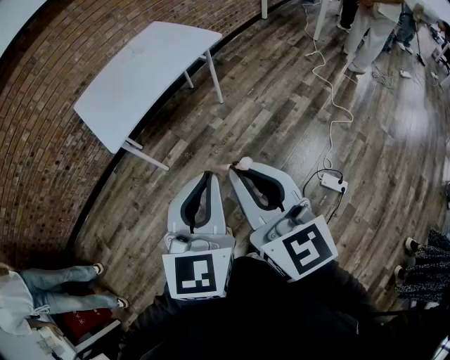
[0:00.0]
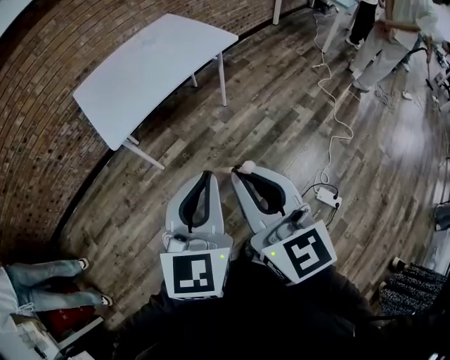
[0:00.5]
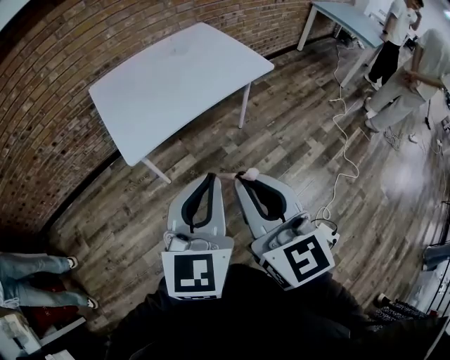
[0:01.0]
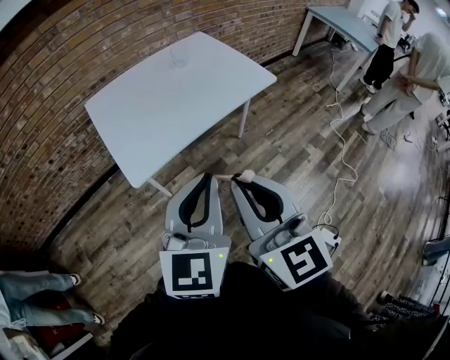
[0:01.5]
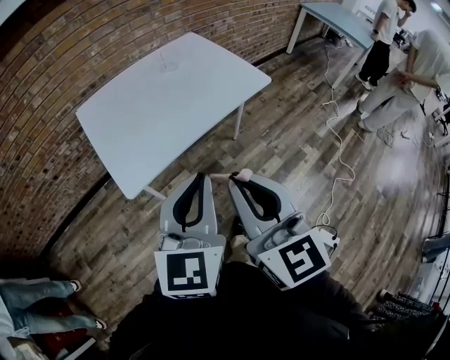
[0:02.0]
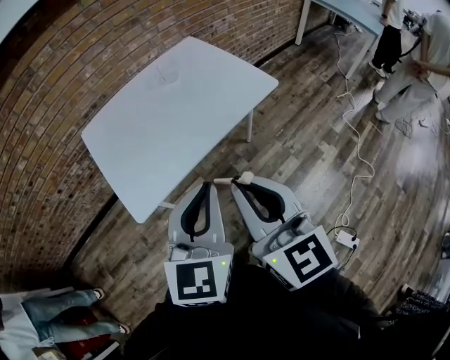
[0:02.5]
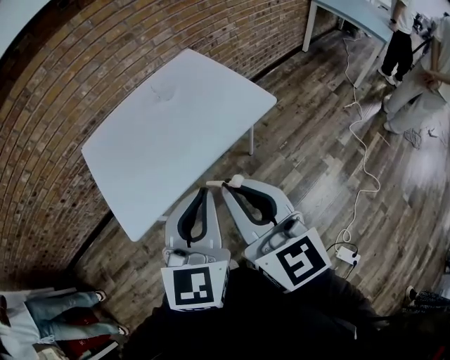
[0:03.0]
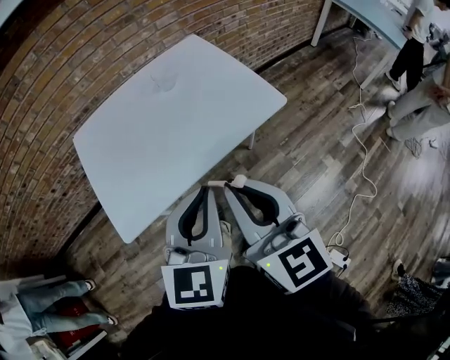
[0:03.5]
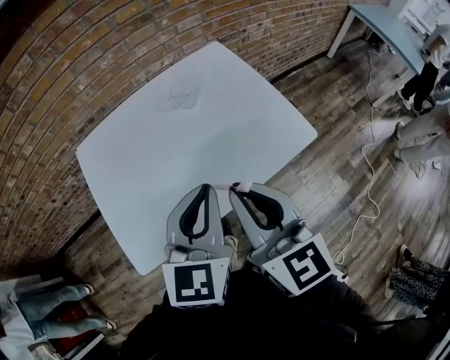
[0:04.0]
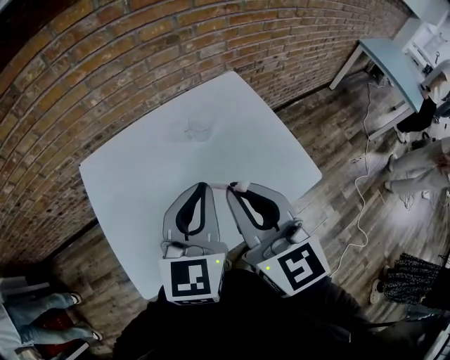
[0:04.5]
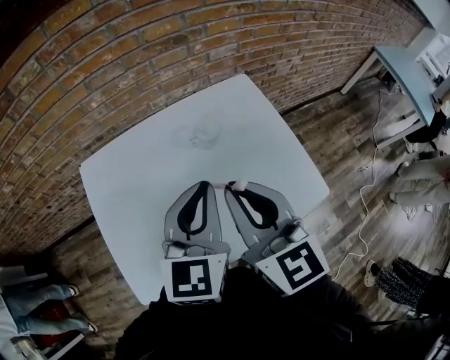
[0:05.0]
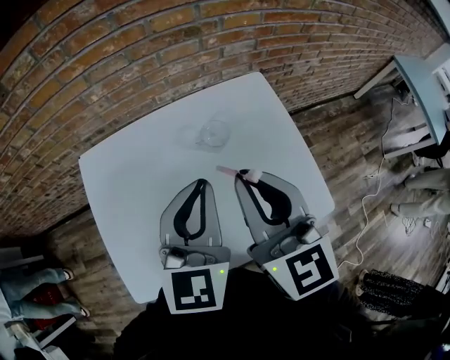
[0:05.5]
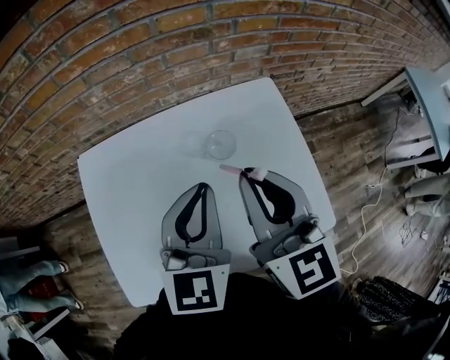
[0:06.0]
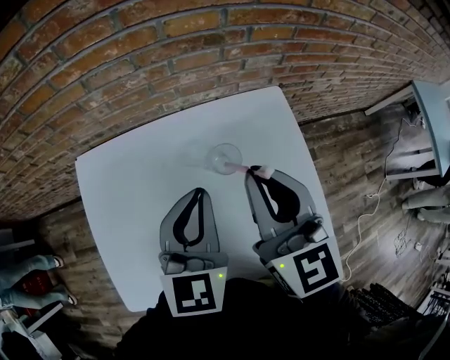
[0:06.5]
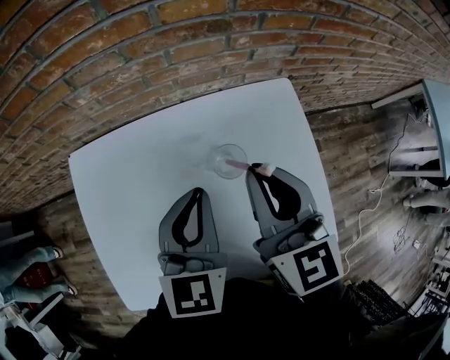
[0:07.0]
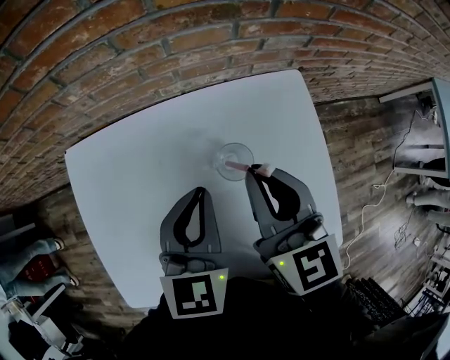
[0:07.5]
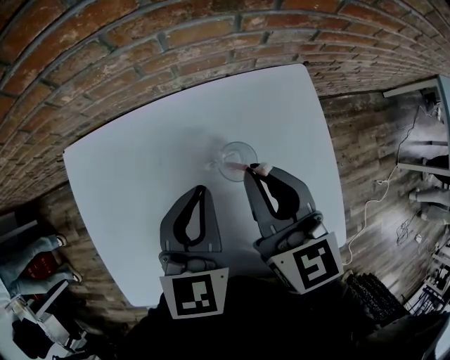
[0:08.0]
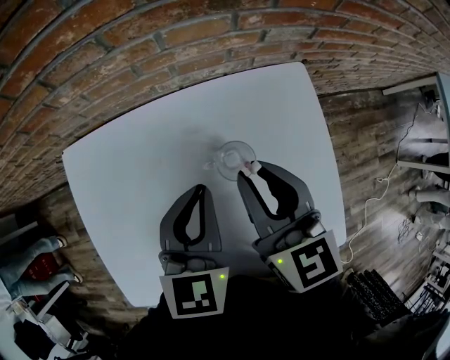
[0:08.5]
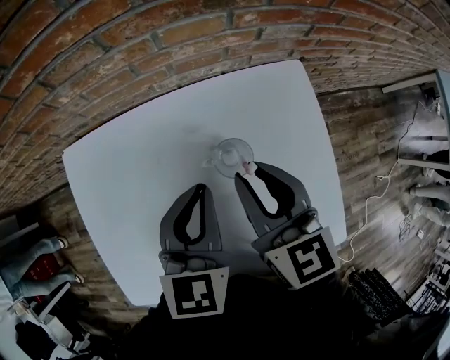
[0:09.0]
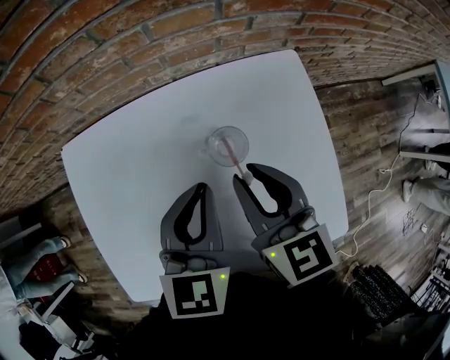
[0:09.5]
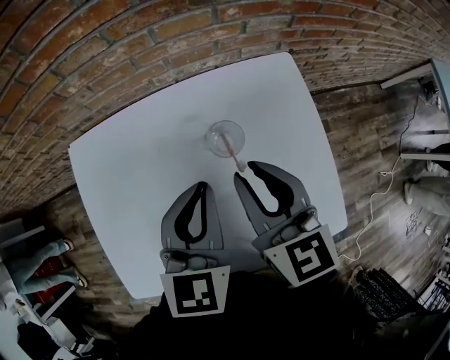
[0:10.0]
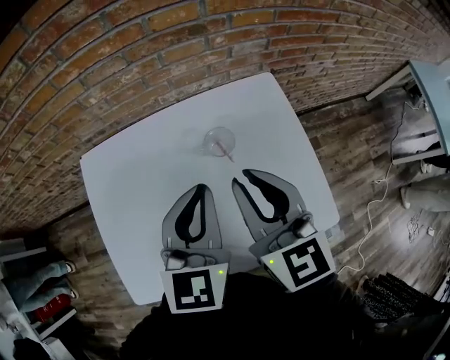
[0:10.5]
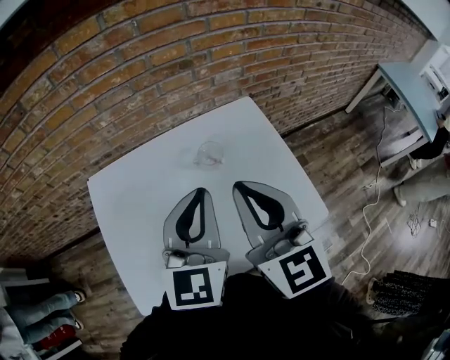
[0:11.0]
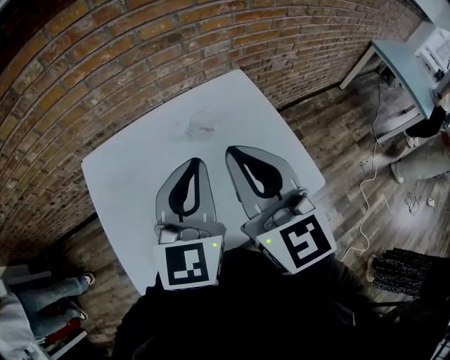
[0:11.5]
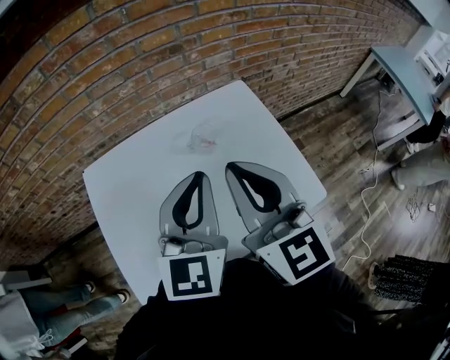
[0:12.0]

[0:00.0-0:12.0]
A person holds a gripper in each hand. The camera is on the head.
0:00.0 to 0:02.0: The grippers both shift forward and to the left by roughly 30 cm.
0:02.0 to 0:04.0: Both grippers move forward, about 30 cm.
0:04.0 to 0:06.0: The grippers both shift forward by roughly 25 cm.
0:06.0 to 0:08.0: Both grippers move downward and forward, roughly 15 cm.
0:08.0 to 0:10.0: The right gripper is displaced backward by roughly 5 cm; the left gripper ends up roughly 5 cm from where it was.
0:10.0 to 0:12.0: Both grippers travel together upward and backward, about 20 cm. The right gripper turns by about 20 degrees, and closes its fingers, while the left gripper rotates some 20 degrees.

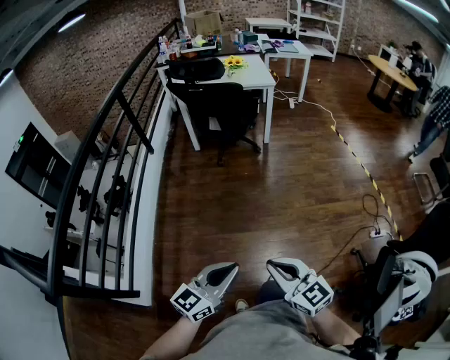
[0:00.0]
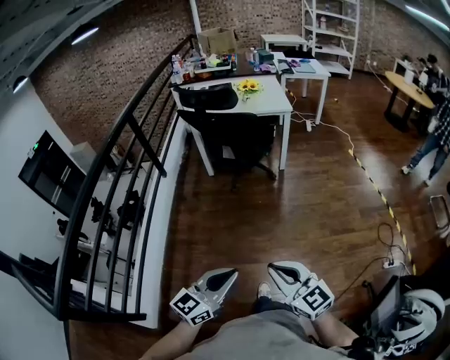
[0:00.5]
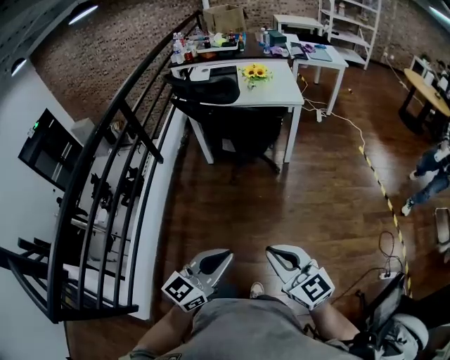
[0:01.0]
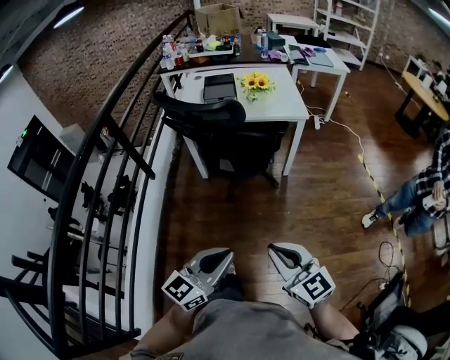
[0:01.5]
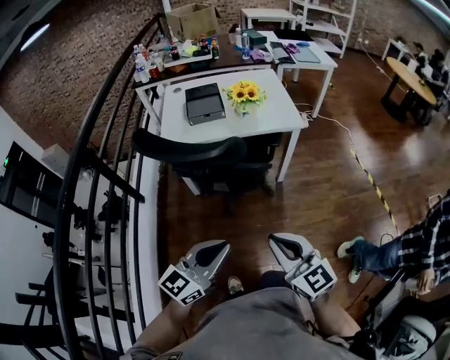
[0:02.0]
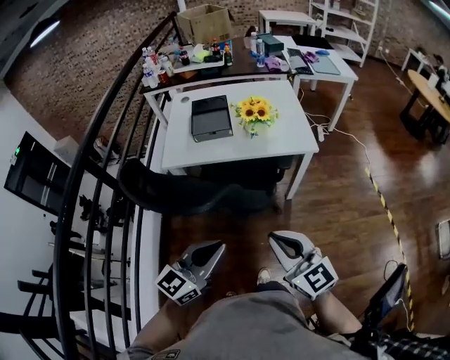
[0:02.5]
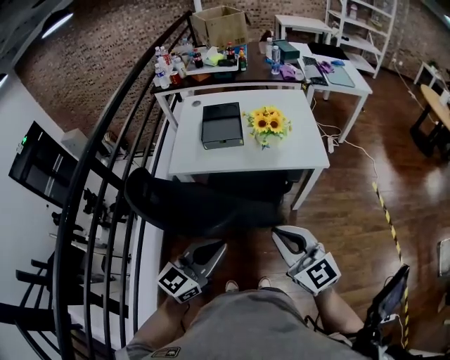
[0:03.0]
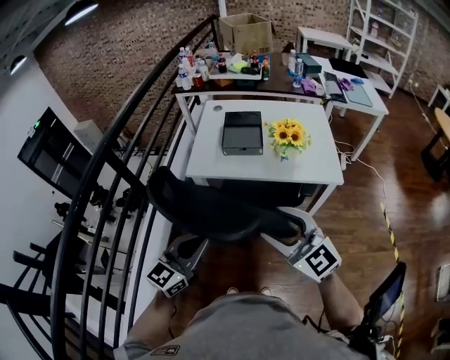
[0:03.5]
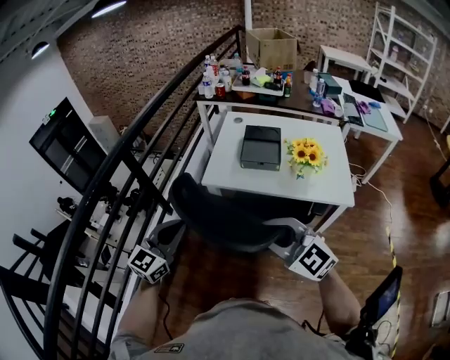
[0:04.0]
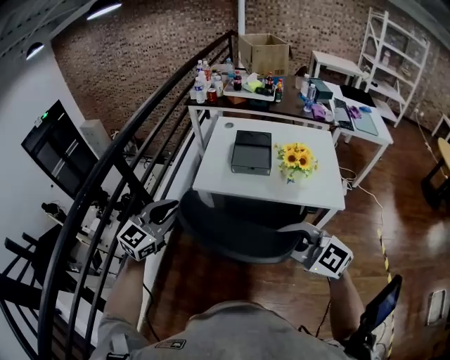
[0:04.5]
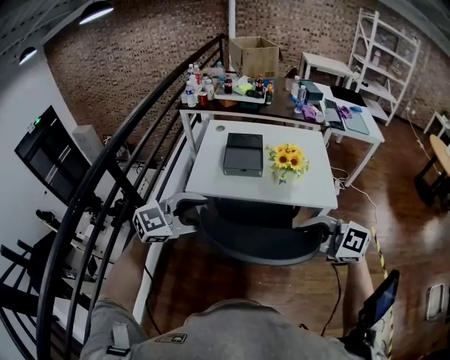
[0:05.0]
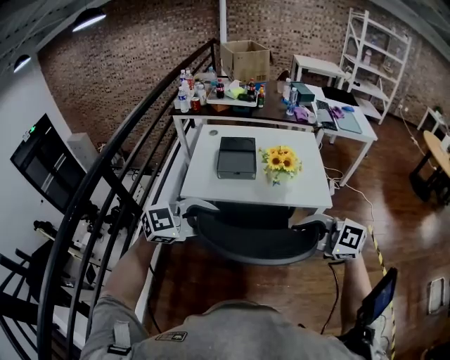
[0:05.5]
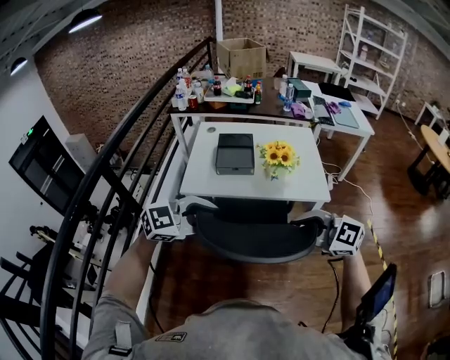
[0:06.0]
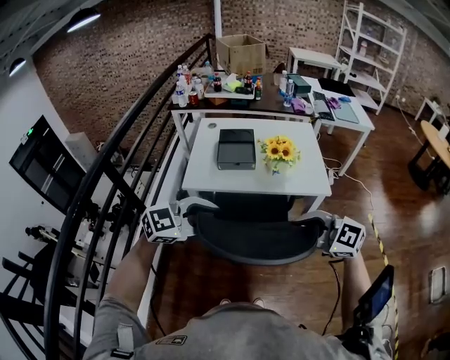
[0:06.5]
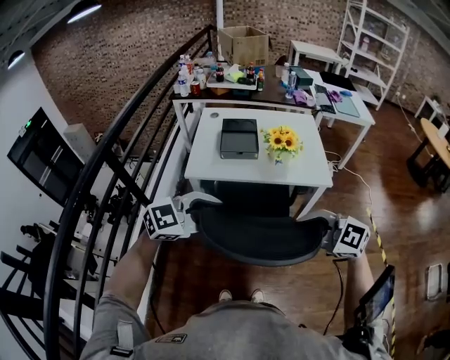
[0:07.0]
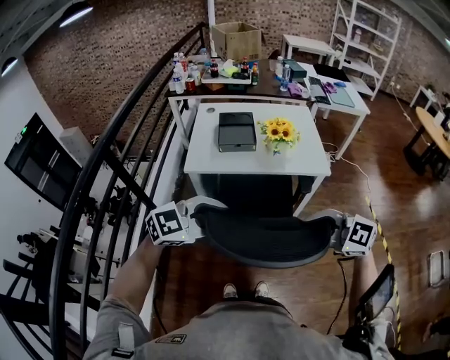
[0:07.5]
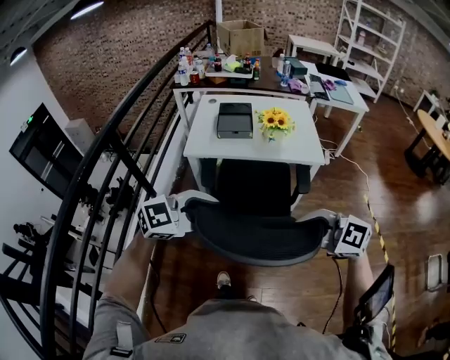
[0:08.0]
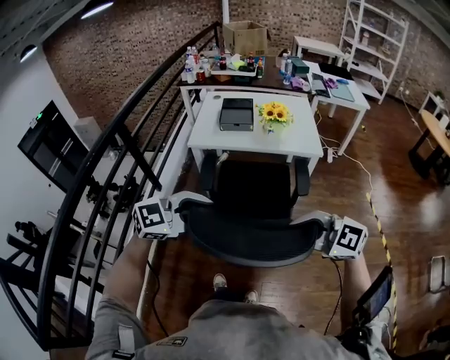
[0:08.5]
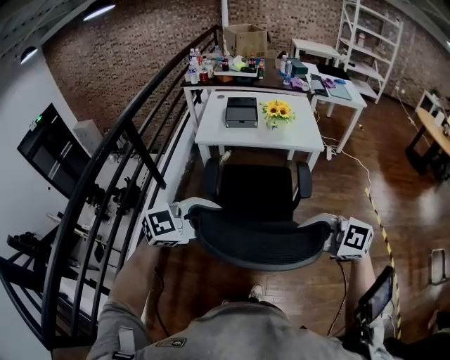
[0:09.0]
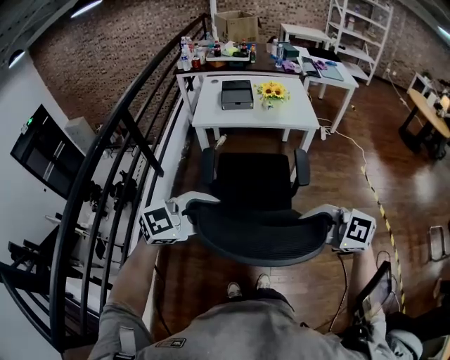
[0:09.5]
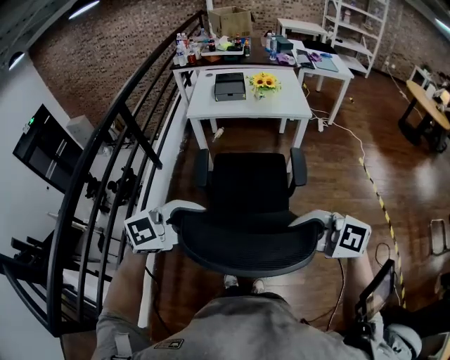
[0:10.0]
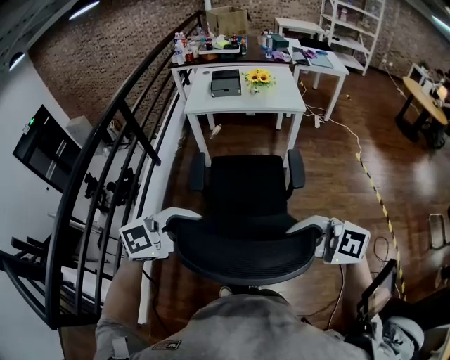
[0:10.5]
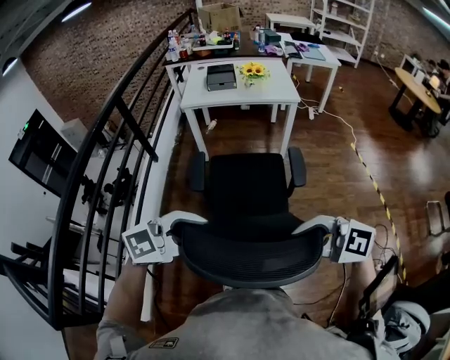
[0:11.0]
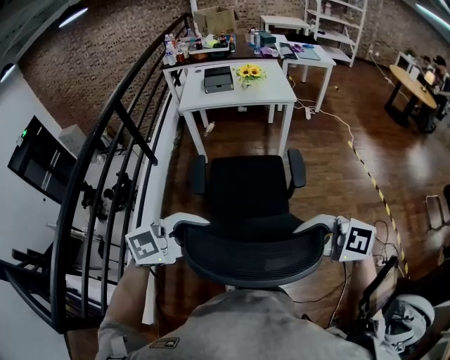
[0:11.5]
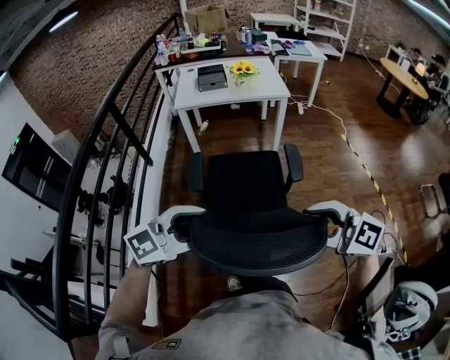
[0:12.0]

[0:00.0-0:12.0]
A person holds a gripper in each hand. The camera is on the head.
0:00.0 to 0:02.0: Both grippers are carried forward, about 60 cm.
0:02.0 to 0:04.0: The left gripper shifts by some 30 cm, and rotates approximately 30 degrees, while the right gripper shifts by roughly 25 cm, swivels roughly 40 degrees, and opens and closes again.
0:04.0 to 0:06.0: The left gripper ends up approximately 15 cm from where it was, rotates roughly 50 degrees, and opens up, while the right gripper changes place by approximately 15 cm.
0:06.0 to 0:08.0: The right gripper shifts by about 20 cm, while the left gripper shifts by some 15 cm.
0:08.0 to 0:10.0: The left gripper shifts by about 30 cm, while the right gripper changes place by approximately 30 cm.
0:10.0 to 0:12.0: The left gripper changes place by some 15 cm; the right gripper shifts by approximately 15 cm, and opens its fingers.

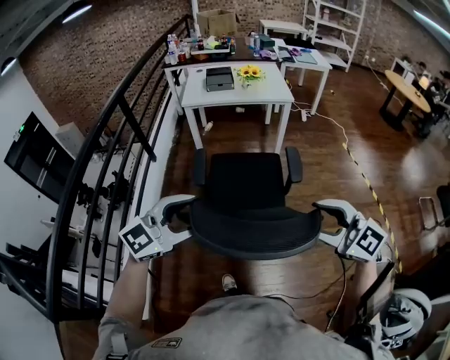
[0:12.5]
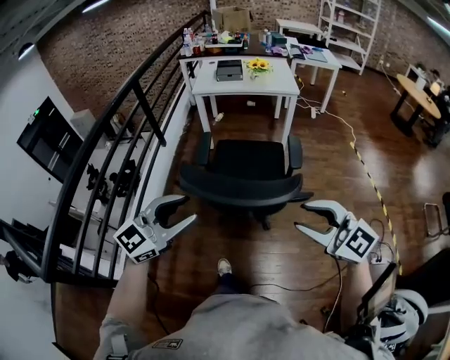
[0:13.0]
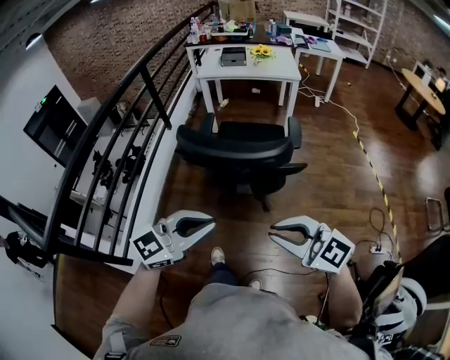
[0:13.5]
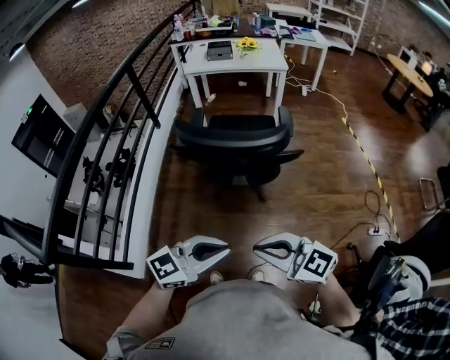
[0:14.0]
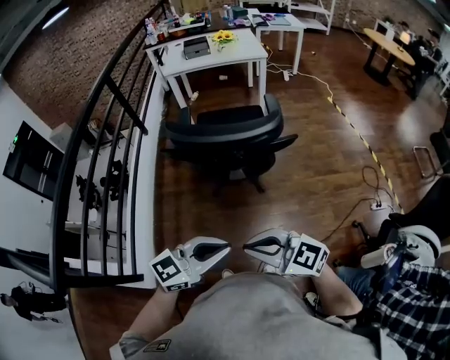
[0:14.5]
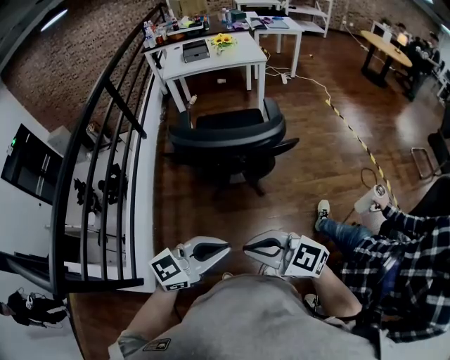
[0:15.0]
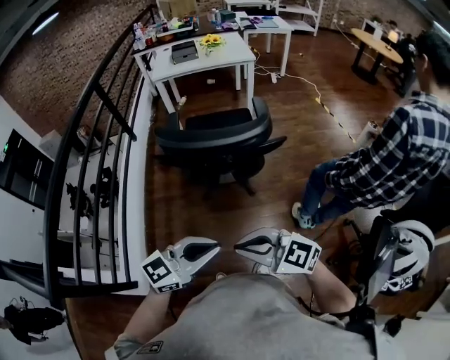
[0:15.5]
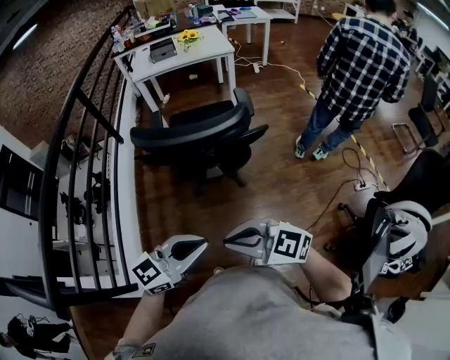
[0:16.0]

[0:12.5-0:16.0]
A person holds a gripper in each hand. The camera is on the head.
0:12.5 to 0:14.5: The right gripper shifts by roughly 35 cm, rotates roughly 20 degrees, and closes its fingers, while the left gripper moves approximately 35 cm, swivels about 20 degrees, and closes up.
0:14.5 to 0:16.0: The grippers move only a little.
